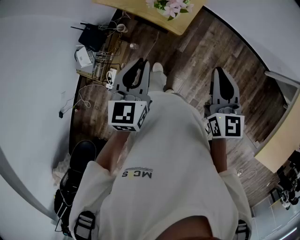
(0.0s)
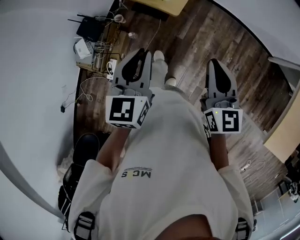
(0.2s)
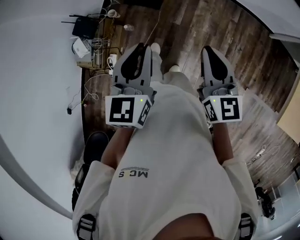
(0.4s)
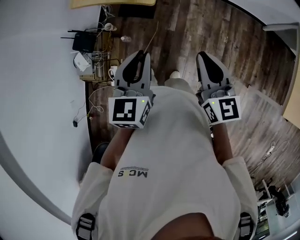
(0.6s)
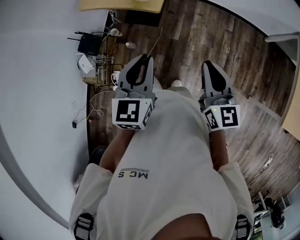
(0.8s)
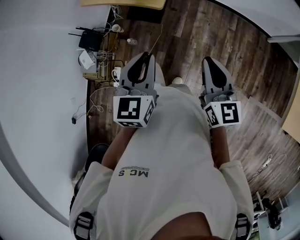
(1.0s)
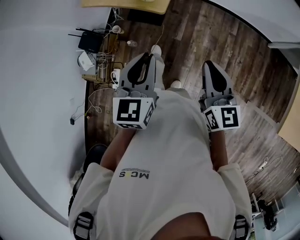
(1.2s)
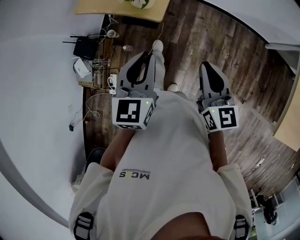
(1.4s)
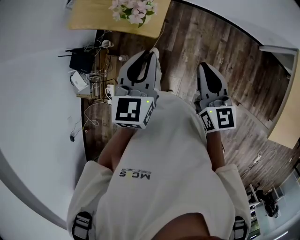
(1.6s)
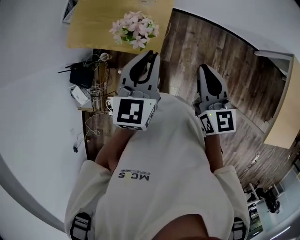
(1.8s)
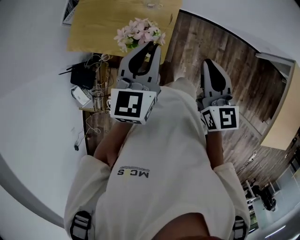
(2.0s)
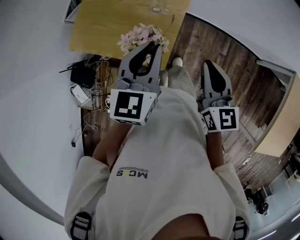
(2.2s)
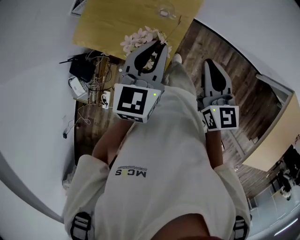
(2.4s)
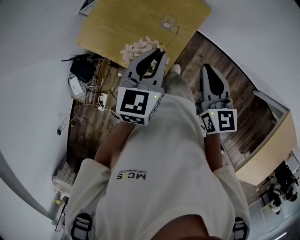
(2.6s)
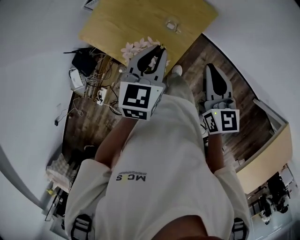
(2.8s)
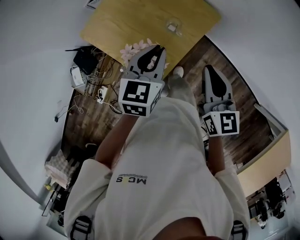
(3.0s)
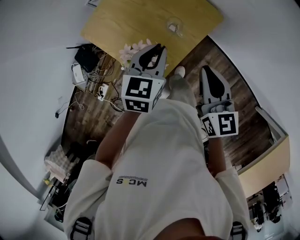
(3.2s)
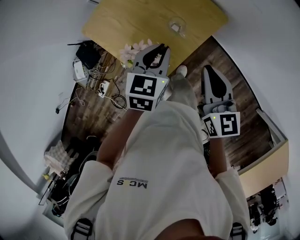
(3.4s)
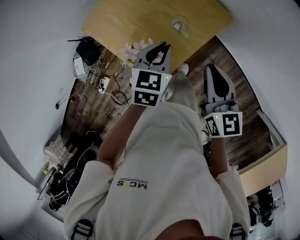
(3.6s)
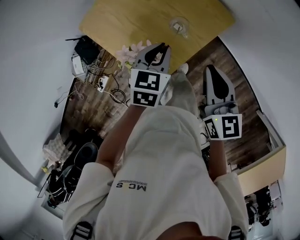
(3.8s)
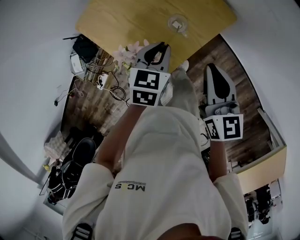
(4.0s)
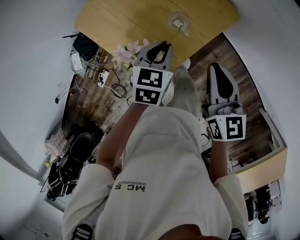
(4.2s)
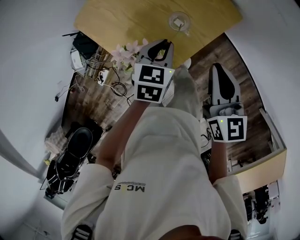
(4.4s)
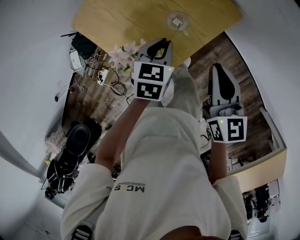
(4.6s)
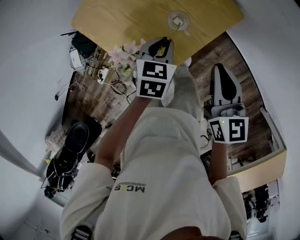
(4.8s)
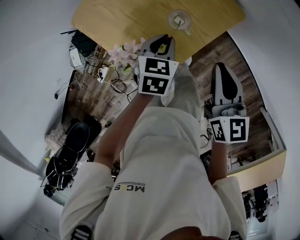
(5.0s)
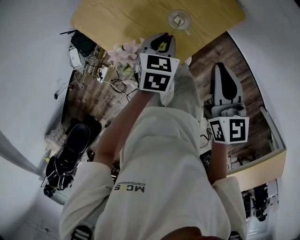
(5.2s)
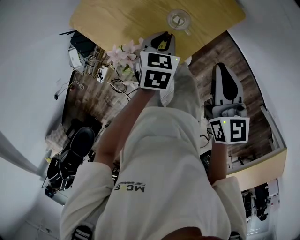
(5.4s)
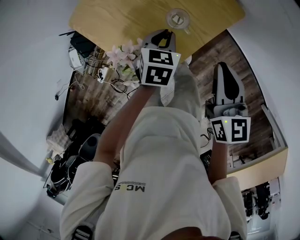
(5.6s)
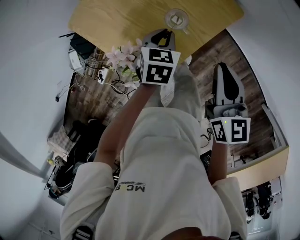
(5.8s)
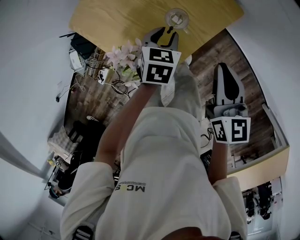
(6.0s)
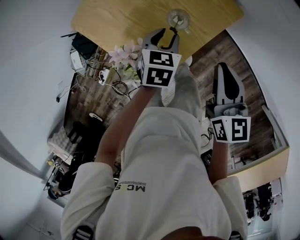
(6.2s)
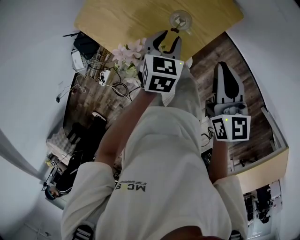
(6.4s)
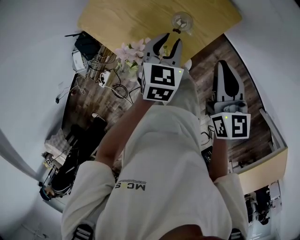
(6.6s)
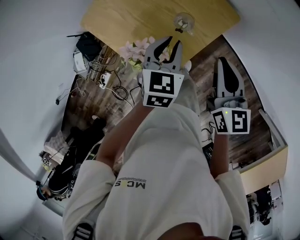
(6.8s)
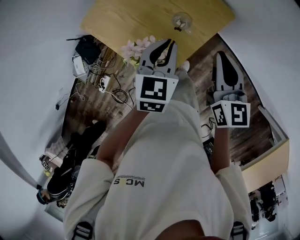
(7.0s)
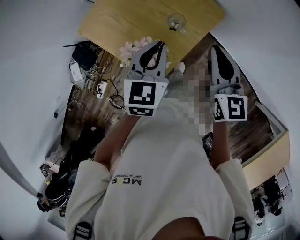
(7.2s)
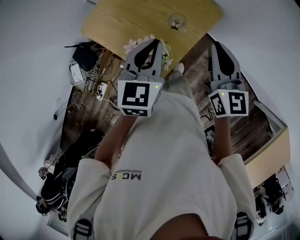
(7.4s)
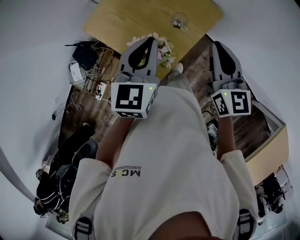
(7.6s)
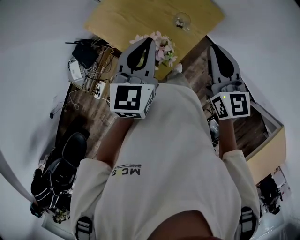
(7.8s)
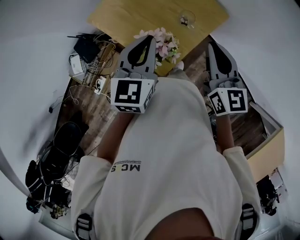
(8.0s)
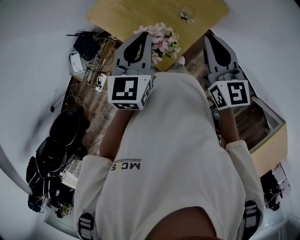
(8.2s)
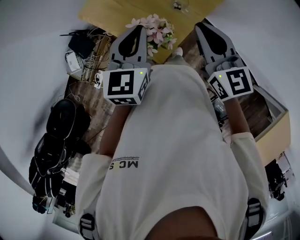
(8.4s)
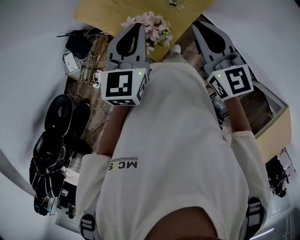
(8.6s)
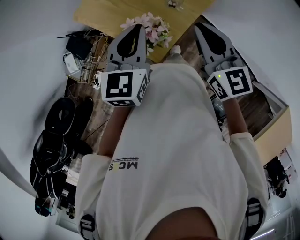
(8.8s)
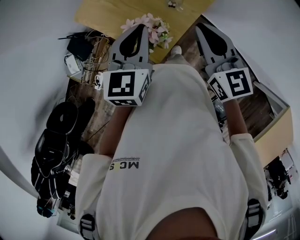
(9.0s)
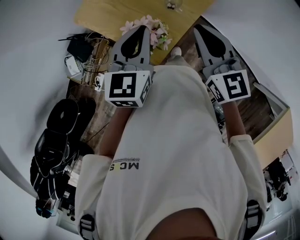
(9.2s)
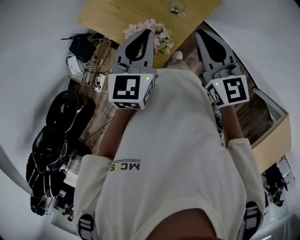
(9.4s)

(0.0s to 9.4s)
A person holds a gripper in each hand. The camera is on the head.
0.0s - 1.6s: The left gripper moves to the right, some 10 cm, and goes backward and returns, some 15 cm each way, while the right gripper travels backward and back again, some 20 cm each way.
1.6s - 3.2s: The left gripper shifts by about 35 cm, and swivels roughly 20 degrees; the right gripper moves some 35 cm, and swivels some 30 degrees.
3.2s - 4.8s: The right gripper heads downward and forward, covering approximately 10 cm. Meanwhile the left gripper travels downward by some 15 cm.
4.8s - 6.2s: The left gripper opens its fingers.
6.2s - 7.8s: The right gripper goes approximately 15 cm upward and to the left. The left gripper heads upward and to the left, covering about 30 cm, points its fingers some 30 degrees further upward, and closes up.
7.8s - 9.4s: There are only small adjustments of the grippers.

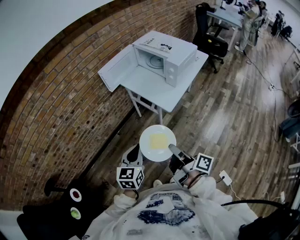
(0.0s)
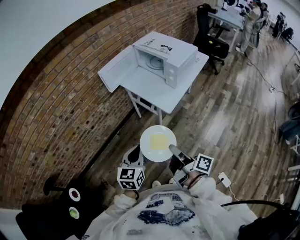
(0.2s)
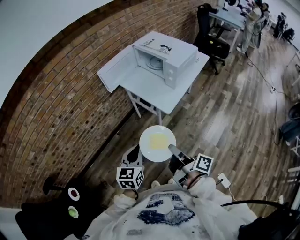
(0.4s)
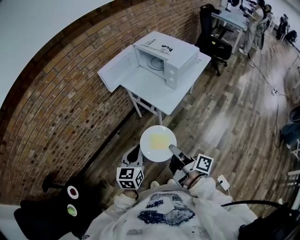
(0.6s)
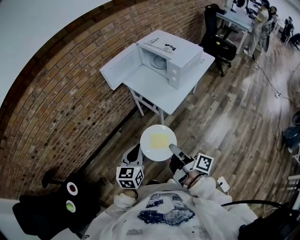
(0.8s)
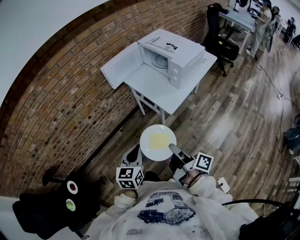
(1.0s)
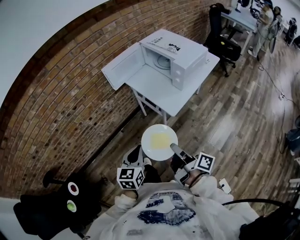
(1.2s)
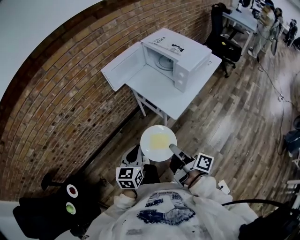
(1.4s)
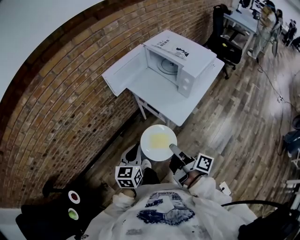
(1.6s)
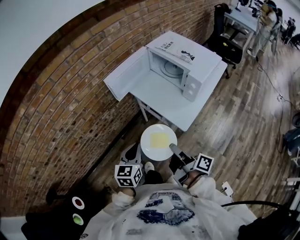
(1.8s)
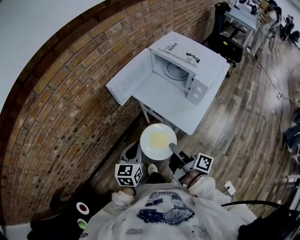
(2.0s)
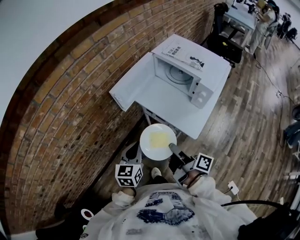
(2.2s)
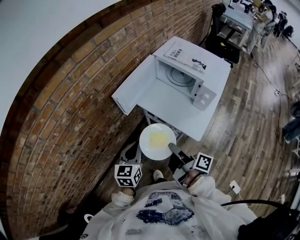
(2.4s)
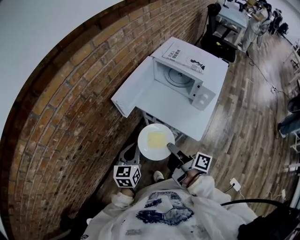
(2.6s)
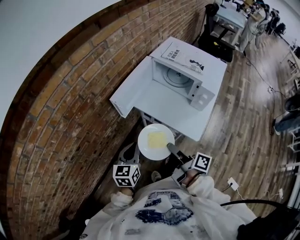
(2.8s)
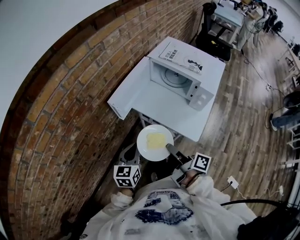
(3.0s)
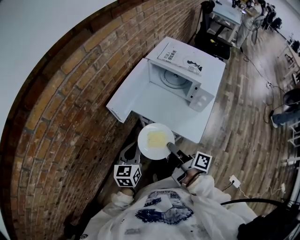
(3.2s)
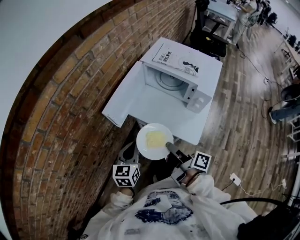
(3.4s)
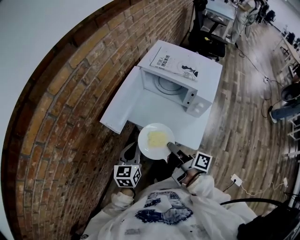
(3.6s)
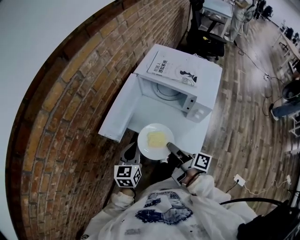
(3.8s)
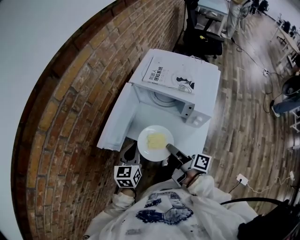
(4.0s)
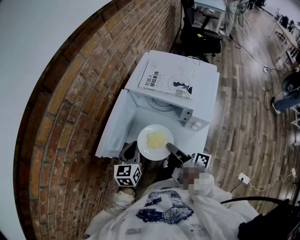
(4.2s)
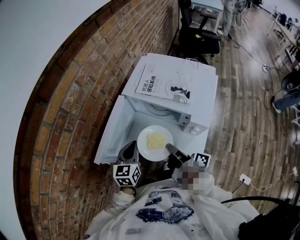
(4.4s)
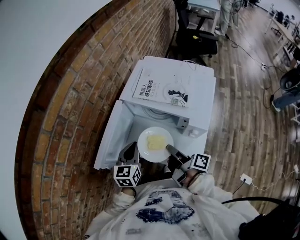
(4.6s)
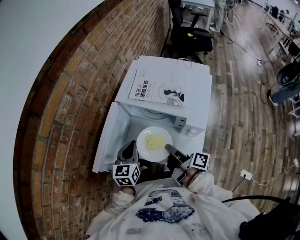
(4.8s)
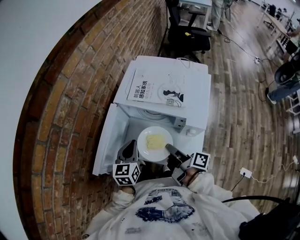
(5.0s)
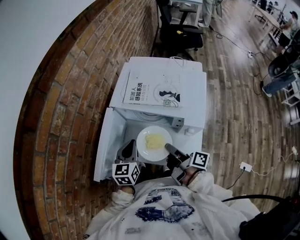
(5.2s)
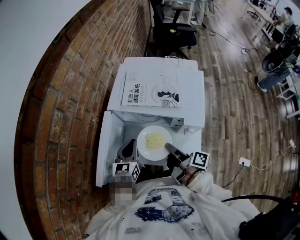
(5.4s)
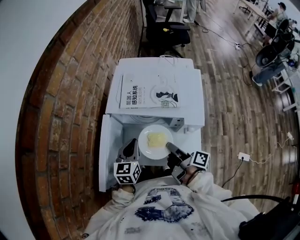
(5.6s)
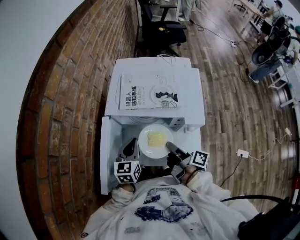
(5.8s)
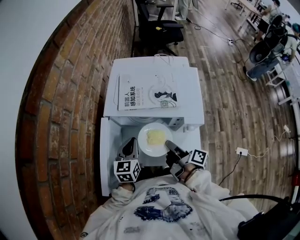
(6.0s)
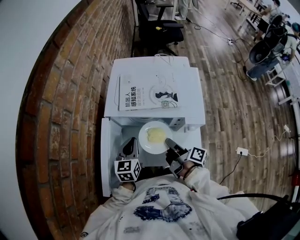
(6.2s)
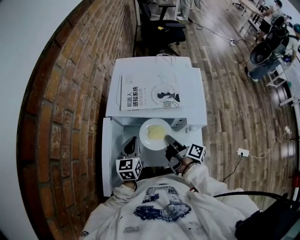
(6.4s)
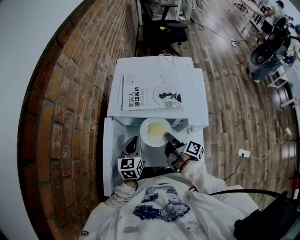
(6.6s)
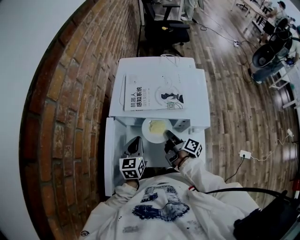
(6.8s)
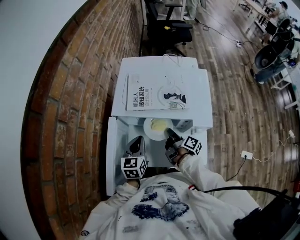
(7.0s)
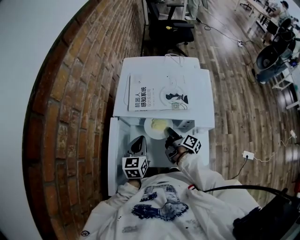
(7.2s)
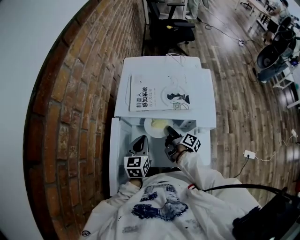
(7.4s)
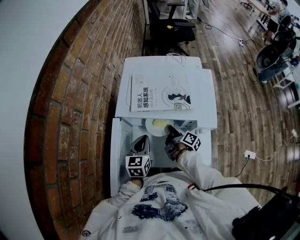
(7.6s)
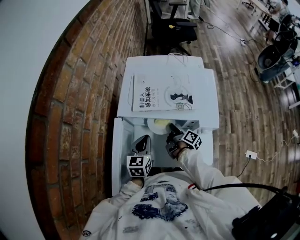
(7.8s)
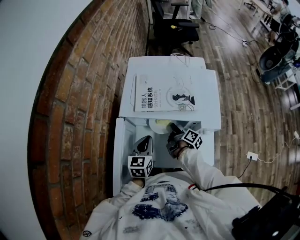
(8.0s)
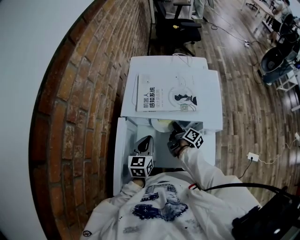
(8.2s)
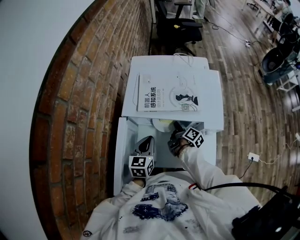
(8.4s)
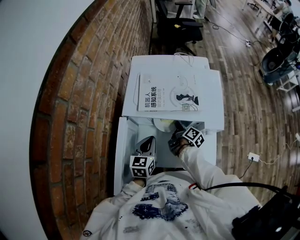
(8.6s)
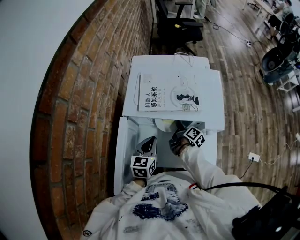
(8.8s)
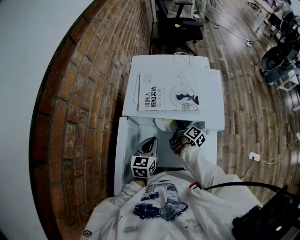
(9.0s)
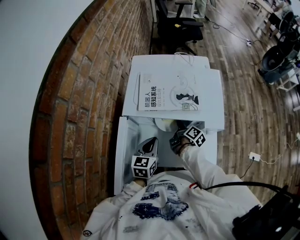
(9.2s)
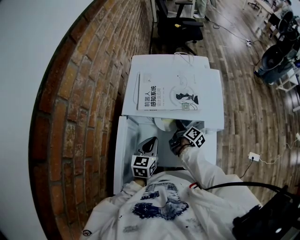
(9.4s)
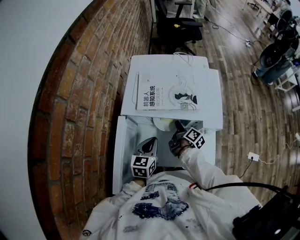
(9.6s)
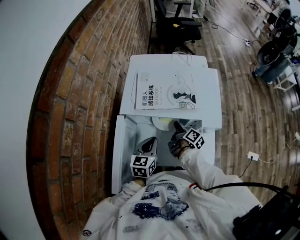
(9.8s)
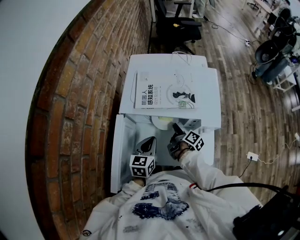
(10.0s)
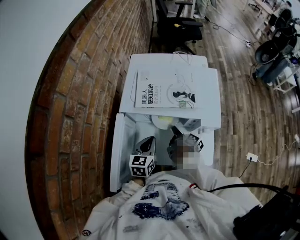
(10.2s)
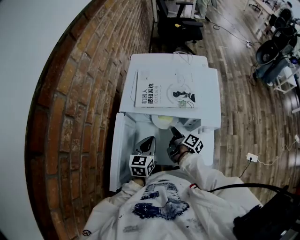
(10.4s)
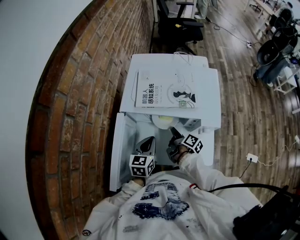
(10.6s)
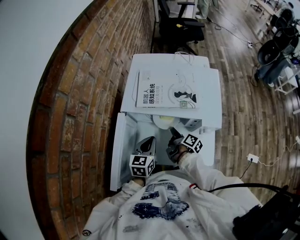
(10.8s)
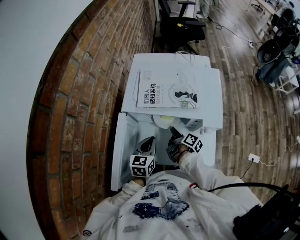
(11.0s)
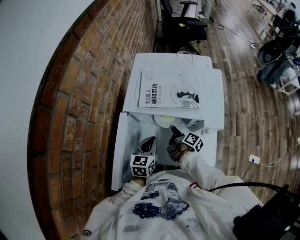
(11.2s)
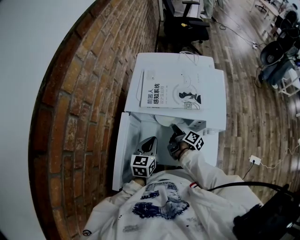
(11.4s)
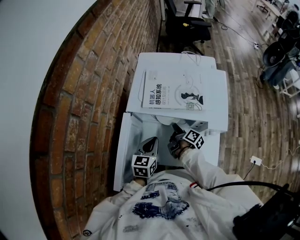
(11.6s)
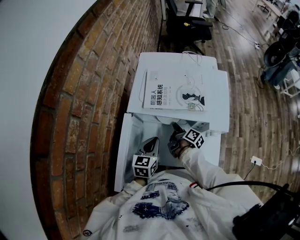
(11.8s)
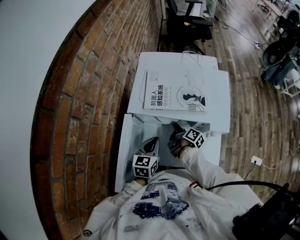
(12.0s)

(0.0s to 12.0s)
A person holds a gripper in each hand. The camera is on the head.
0.0s - 1.6s: The left gripper moves approximately 15 cm.
1.6s - 3.0s: The left gripper moves some 25 cm.
3.0s - 4.4s: The left gripper moves roughly 25 cm.
4.4s - 6.0s: The left gripper shifts by approximately 10 cm.

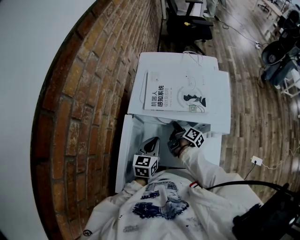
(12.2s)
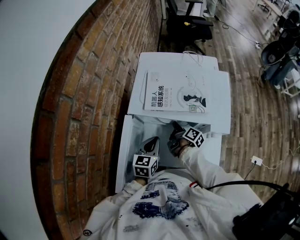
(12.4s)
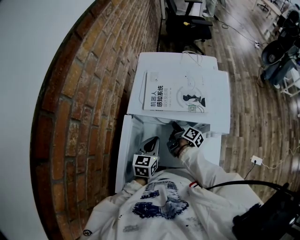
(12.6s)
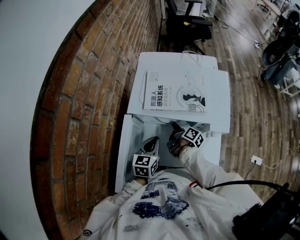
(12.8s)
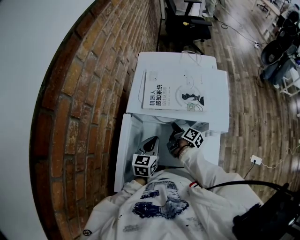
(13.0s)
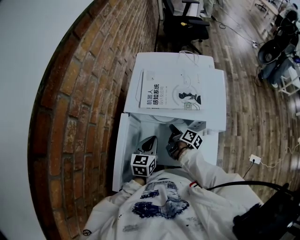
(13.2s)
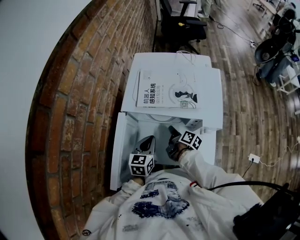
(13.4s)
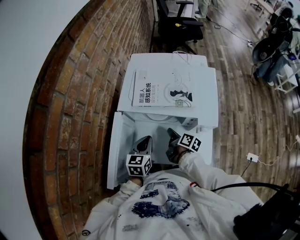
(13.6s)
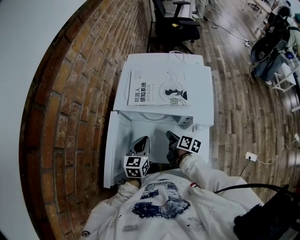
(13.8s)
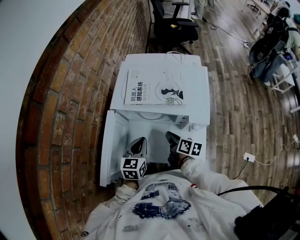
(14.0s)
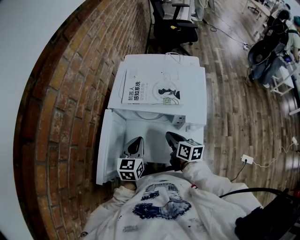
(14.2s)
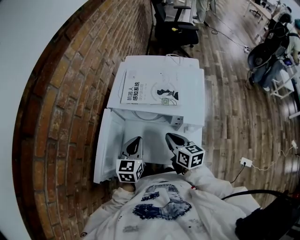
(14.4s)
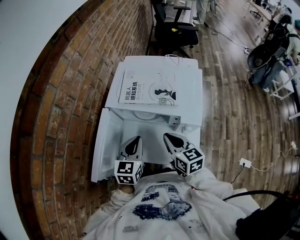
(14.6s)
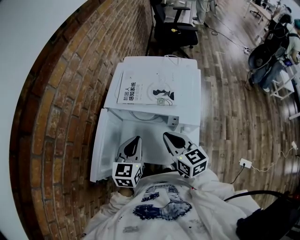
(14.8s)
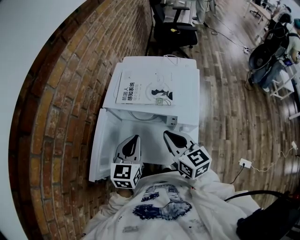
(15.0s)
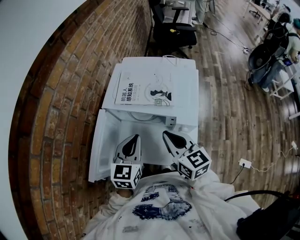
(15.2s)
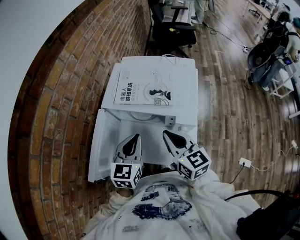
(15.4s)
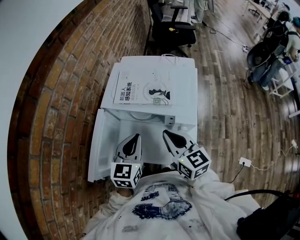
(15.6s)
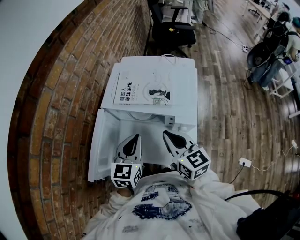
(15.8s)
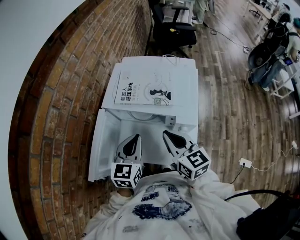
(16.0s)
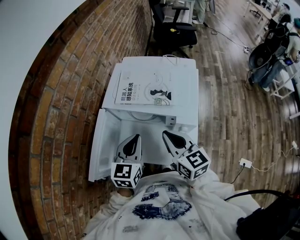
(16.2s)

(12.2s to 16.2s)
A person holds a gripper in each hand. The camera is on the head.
13.6s - 14.8s: The left gripper heads upward, covering approximately 10 cm.
